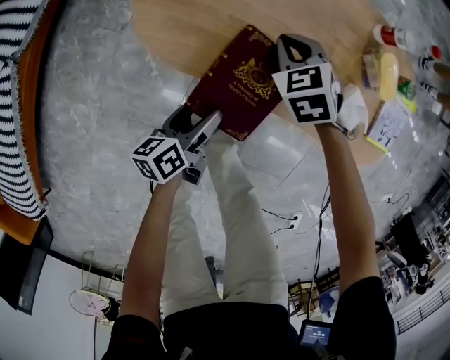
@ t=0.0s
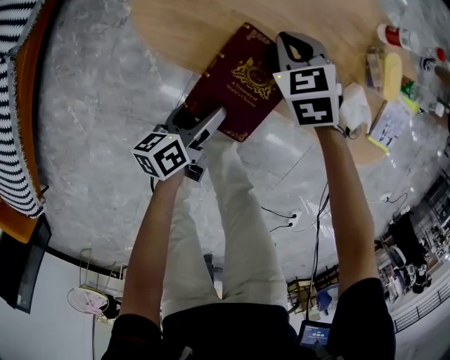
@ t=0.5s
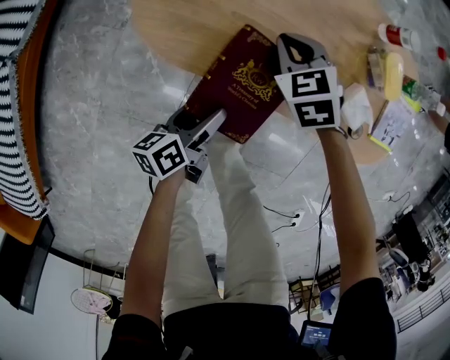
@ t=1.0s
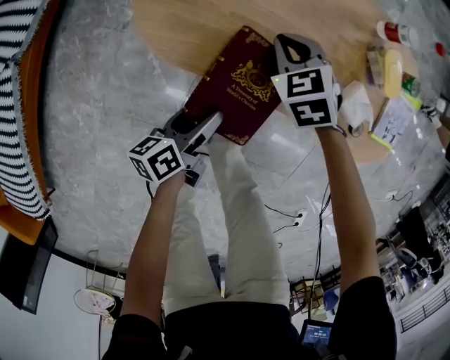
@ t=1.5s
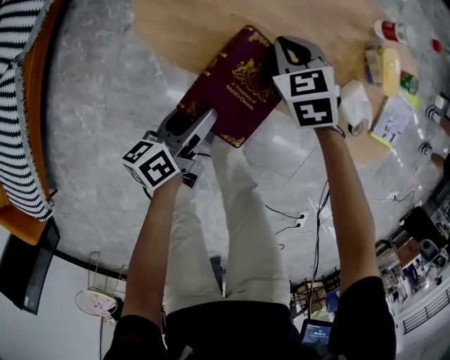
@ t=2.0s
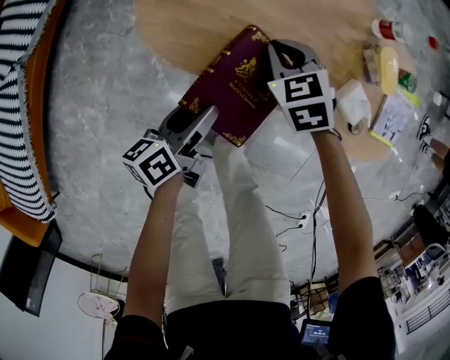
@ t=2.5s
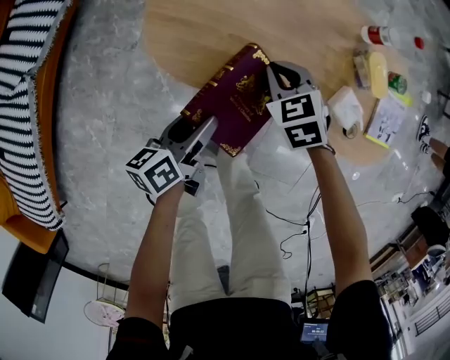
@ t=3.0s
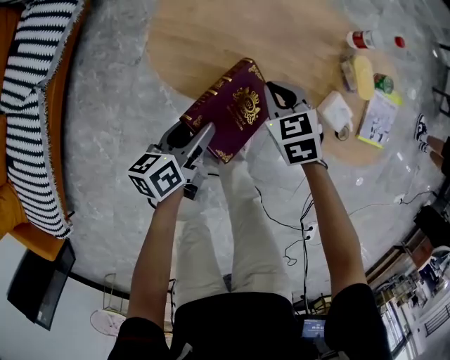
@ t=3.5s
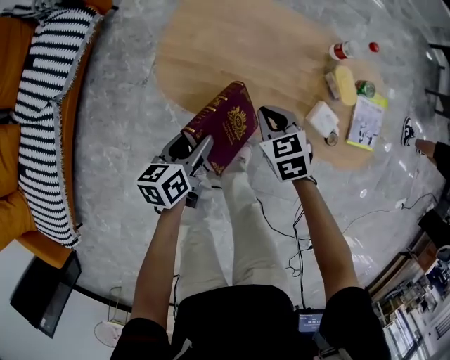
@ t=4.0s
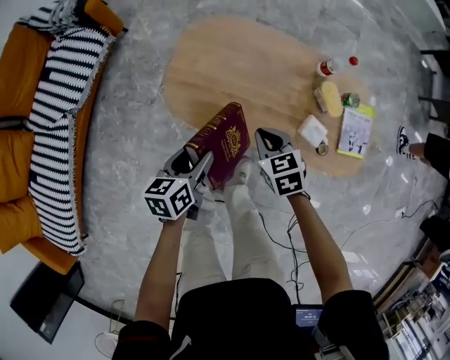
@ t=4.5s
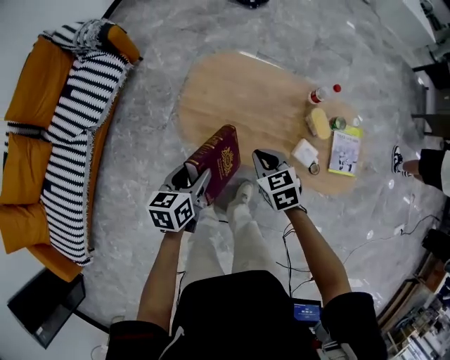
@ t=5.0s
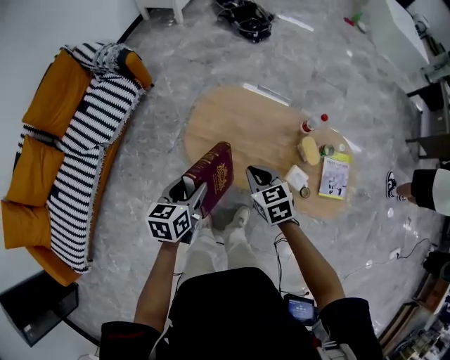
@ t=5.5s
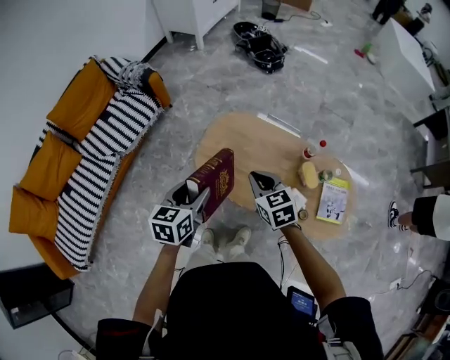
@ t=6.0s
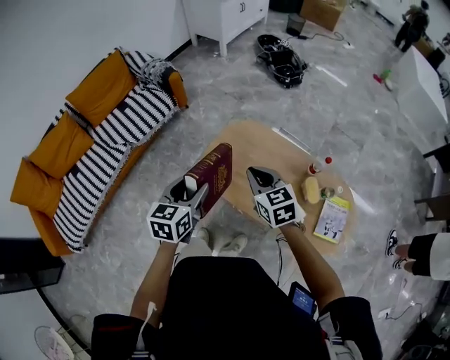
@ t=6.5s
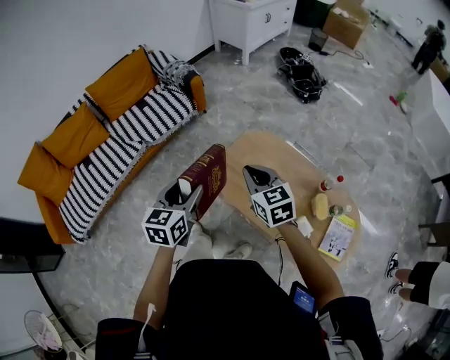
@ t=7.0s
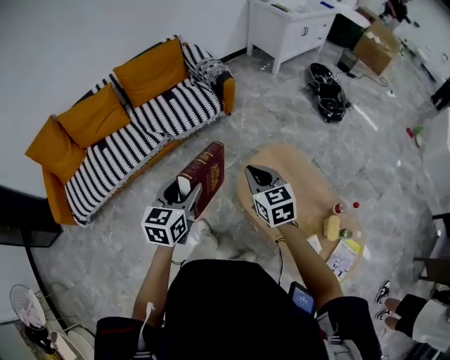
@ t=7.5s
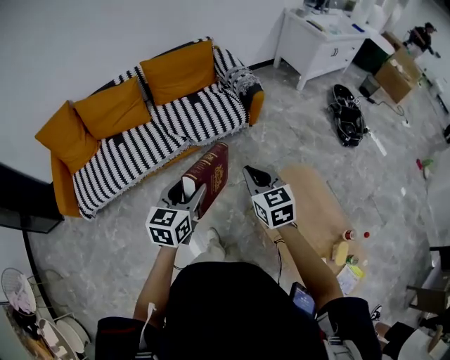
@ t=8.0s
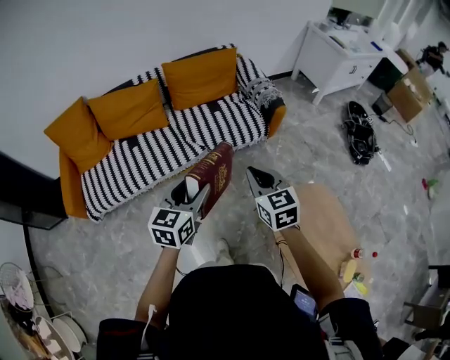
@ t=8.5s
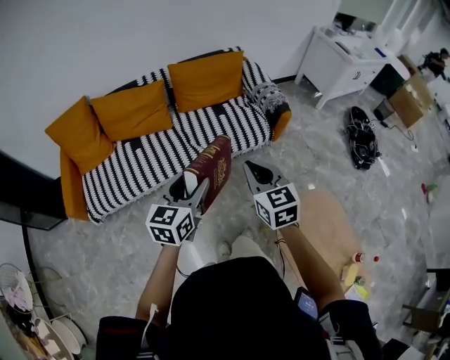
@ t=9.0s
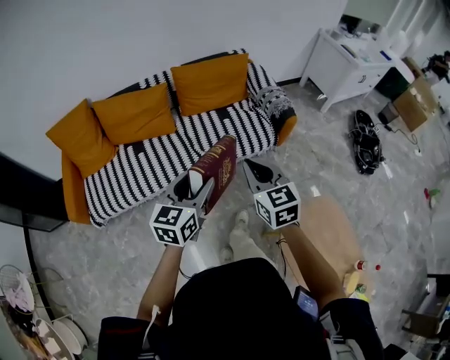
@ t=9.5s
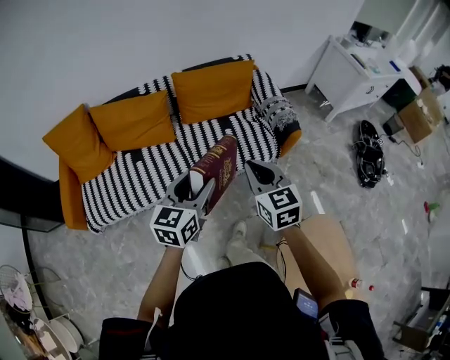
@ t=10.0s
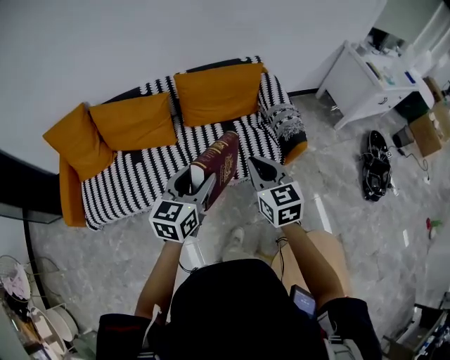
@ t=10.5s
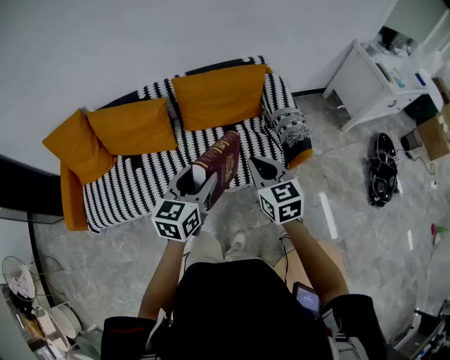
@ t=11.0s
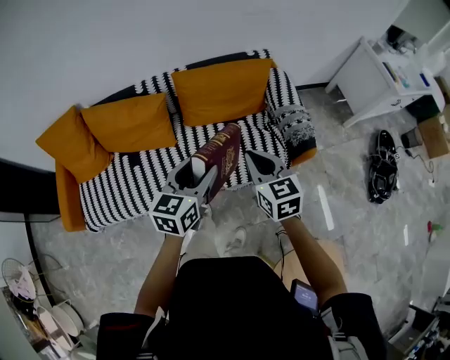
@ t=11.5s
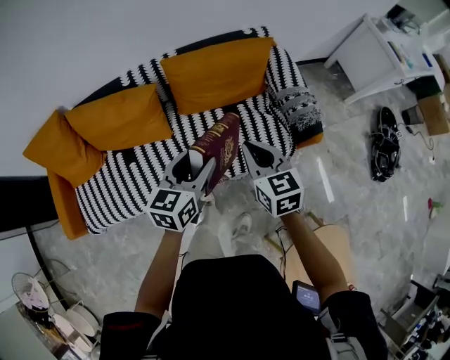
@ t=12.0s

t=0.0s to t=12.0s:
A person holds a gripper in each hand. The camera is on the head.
t=0.0s to t=2.0s: The grippers make only small movements.
t=2.0s to t=4.0s: The left gripper is displaced upward by approximately 15 cm. Meanwhile the right gripper moves upward and backward, approximately 15 cm.
t=4.0s to t=6.0s: The grippers both shift upward by some 30 cm. The left gripper rotates some 30 degrees.
t=6.0s to t=8.0s: The left gripper moves some 30 cm, and swivels approximately 40 degrees. Meanwhile the right gripper changes place by some 35 cm, and swivels about 30 degrees.
t=8.0s to t=10.0s: Both grippers move forward and to the left, roughly 30 cm.
t=10.0s to t=12.0s: Both grippers travel together forward, about 30 cm.

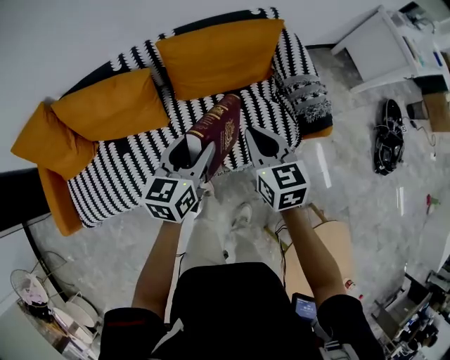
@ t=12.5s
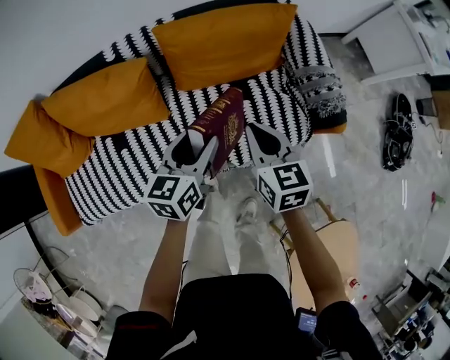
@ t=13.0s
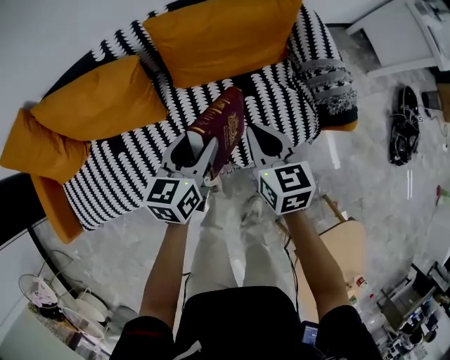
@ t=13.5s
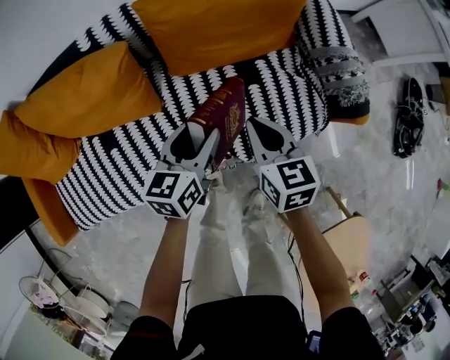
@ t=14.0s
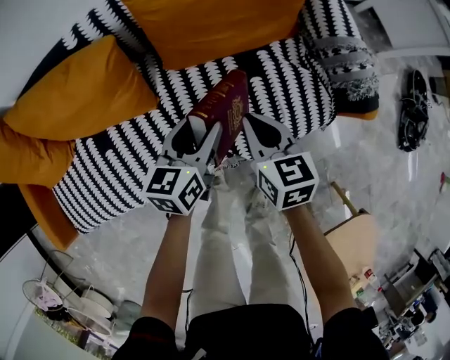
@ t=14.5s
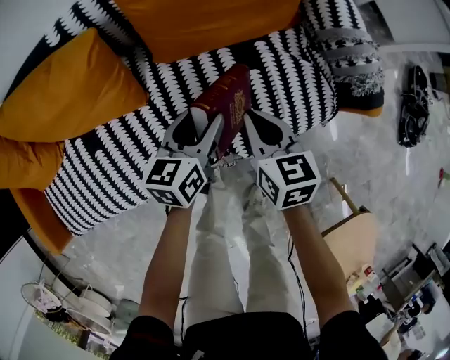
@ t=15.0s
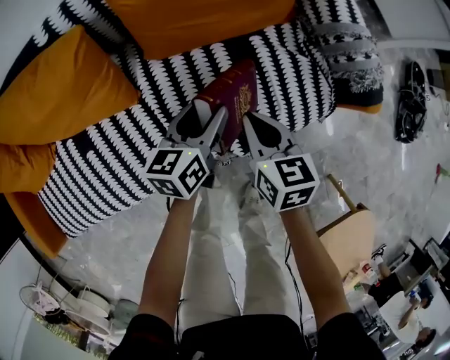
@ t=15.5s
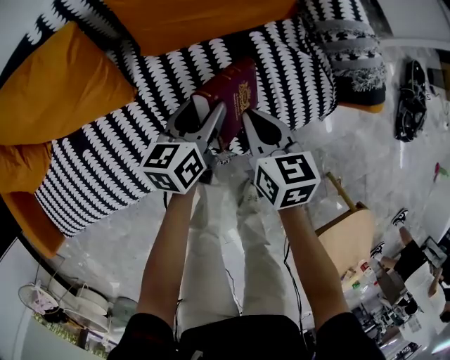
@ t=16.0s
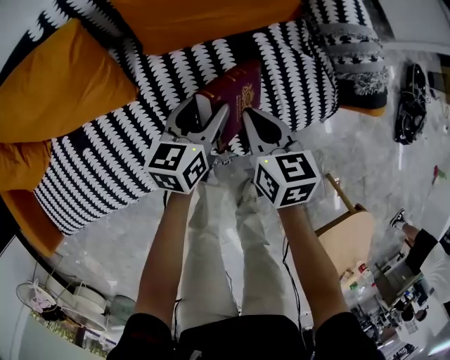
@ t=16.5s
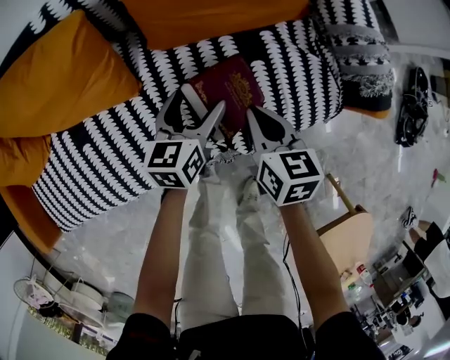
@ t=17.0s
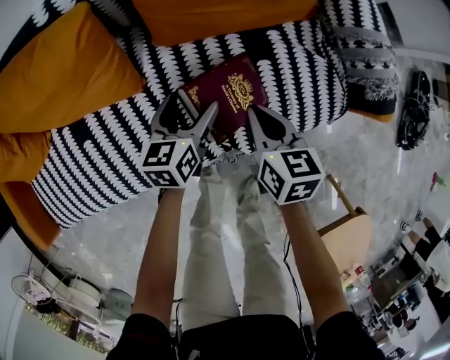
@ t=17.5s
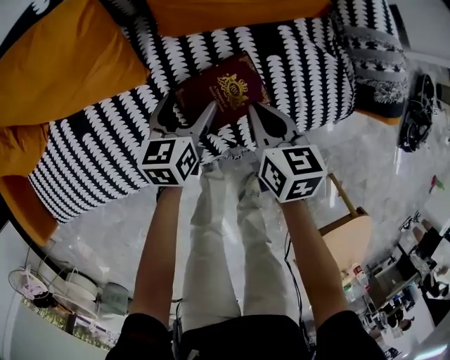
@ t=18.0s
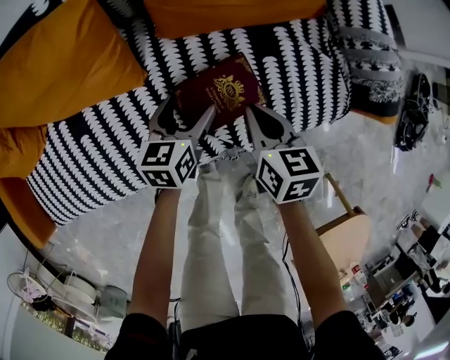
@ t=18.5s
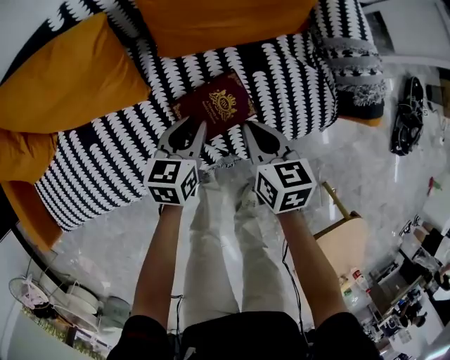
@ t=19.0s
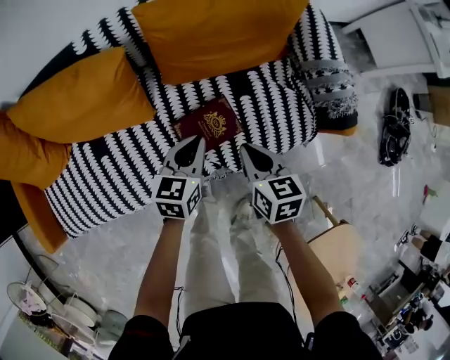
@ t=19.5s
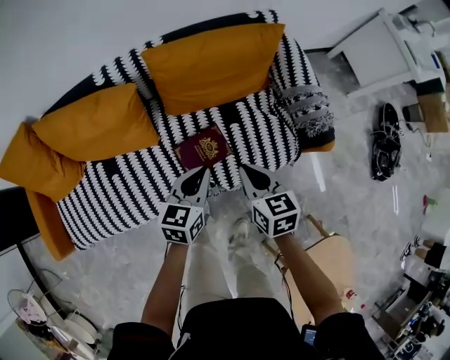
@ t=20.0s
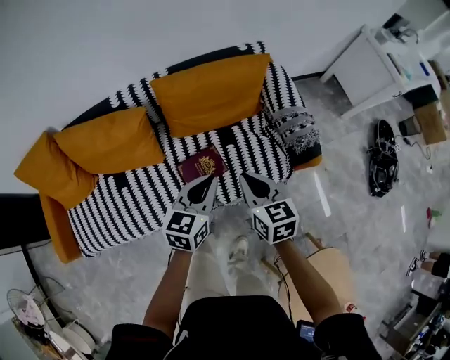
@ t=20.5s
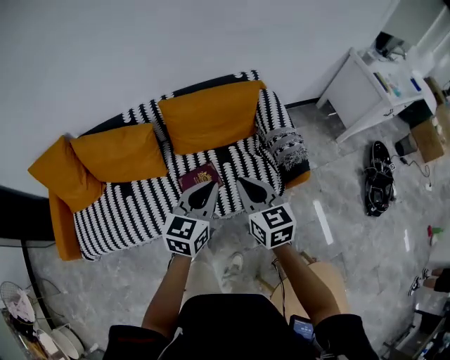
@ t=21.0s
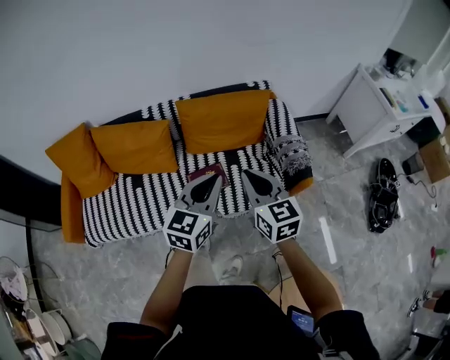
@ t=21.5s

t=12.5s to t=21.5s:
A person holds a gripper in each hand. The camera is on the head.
t=12.5s to t=14.5s: Both grippers travel together downward, roughly 25 cm.
t=14.5s to t=17.0s: Both grippers travel together downward, roughly 10 cm. The left gripper opens up.
t=17.0s to t=19.5s: Both grippers travel together upward, approximately 10 cm. The left gripper closes up.
t=19.5s to t=21.5s: The right gripper goes approximately 35 cm upward, and rotates some 30 degrees; the left gripper is displaced upward and backward by some 40 cm, and turns by roughly 20 degrees.

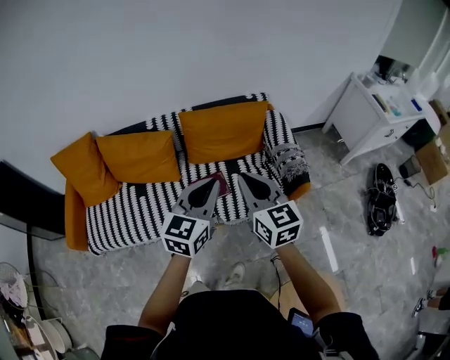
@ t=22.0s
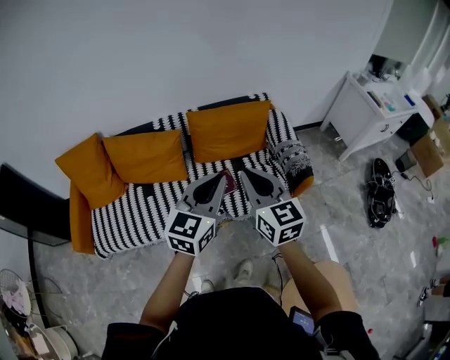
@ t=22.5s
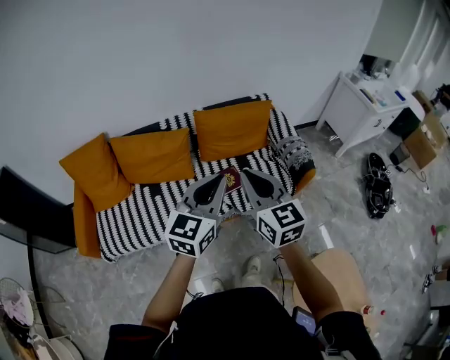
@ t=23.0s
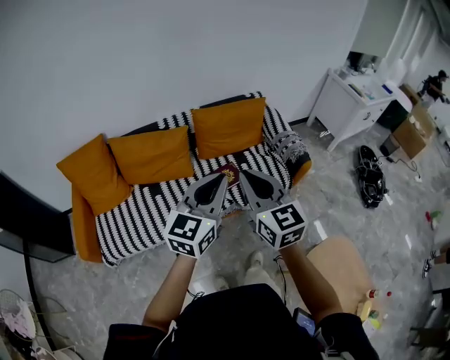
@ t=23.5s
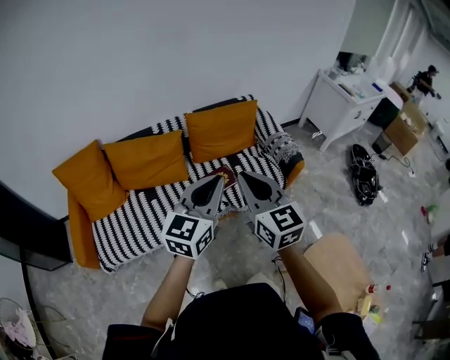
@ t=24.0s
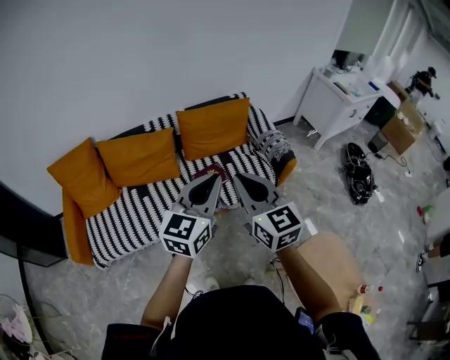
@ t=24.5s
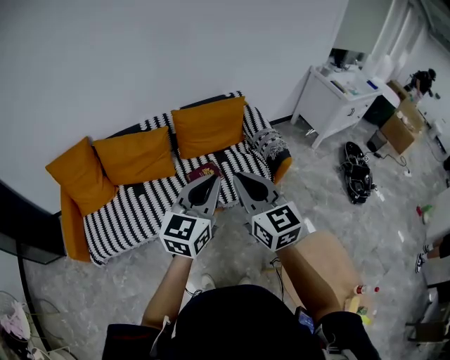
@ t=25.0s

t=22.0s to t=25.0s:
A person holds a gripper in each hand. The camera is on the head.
t=22.0s to t=23.5s: The right gripper goes about 25 cm to the left and backward. Meanwhile the left gripper heads backward and to the left, covering some 20 cm.
t=23.5s to t=25.0s: Both grippers move to the right, some 10 cm.

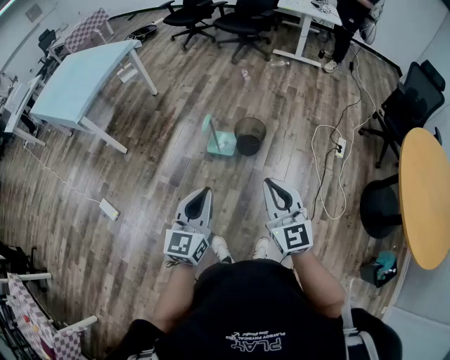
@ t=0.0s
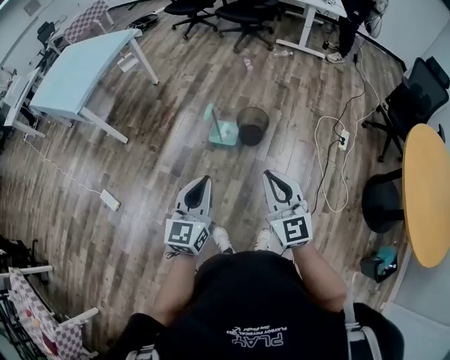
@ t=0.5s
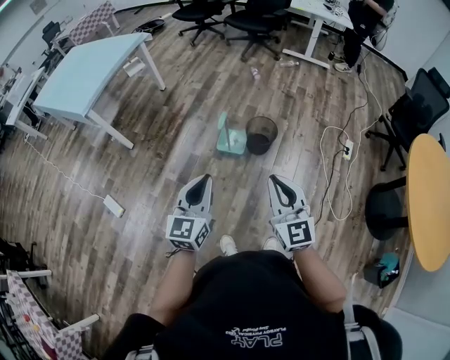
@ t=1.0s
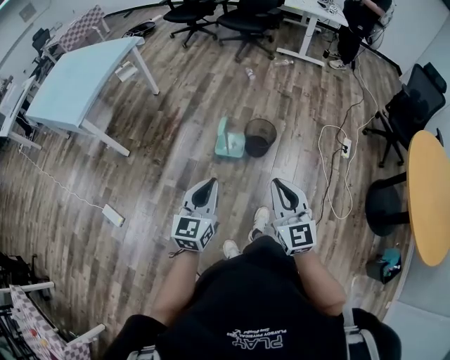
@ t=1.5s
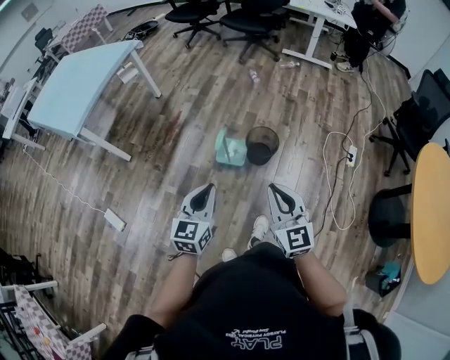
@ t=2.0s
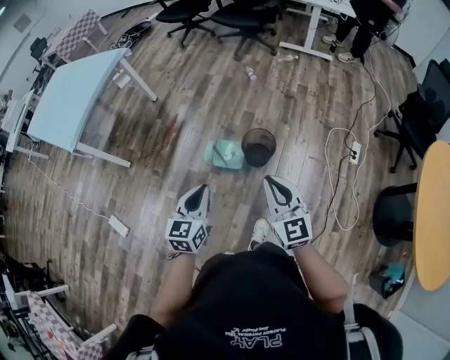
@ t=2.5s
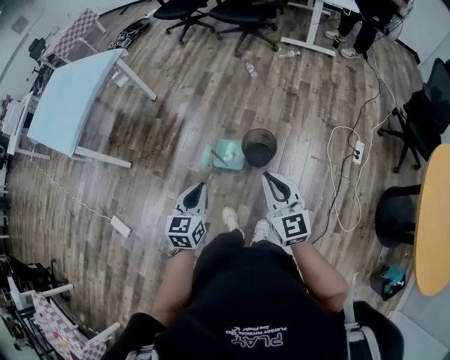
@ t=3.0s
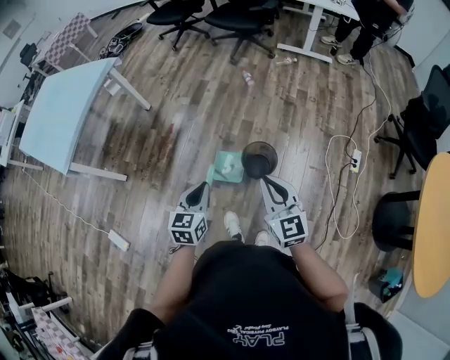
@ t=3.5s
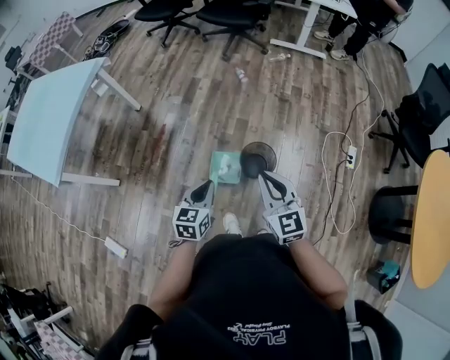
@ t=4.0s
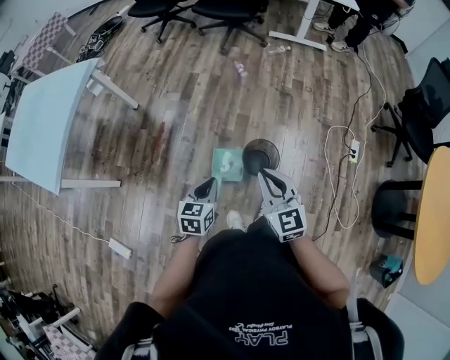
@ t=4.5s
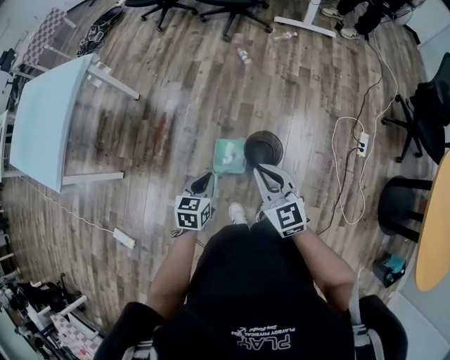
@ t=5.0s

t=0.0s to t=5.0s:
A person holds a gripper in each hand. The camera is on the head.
t=0.0s to t=2.5s: Both grippers travel together forward, roughly 25 cm.
t=2.5s to t=5.0s: The right gripper heads forward, covering some 25 cm; the left gripper travels forward and downward by approximately 30 cm, and rotates some 20 degrees.
